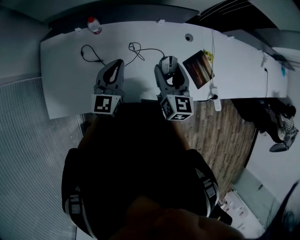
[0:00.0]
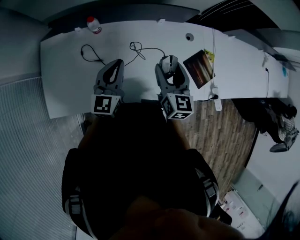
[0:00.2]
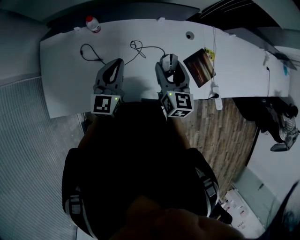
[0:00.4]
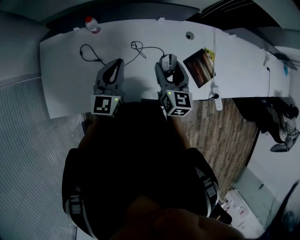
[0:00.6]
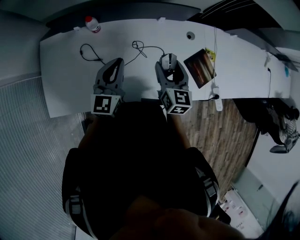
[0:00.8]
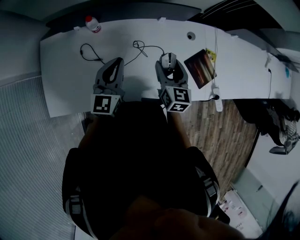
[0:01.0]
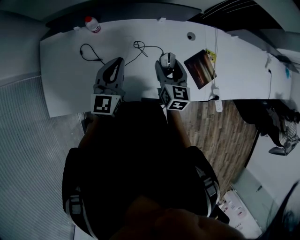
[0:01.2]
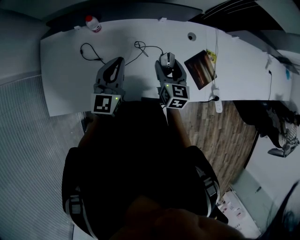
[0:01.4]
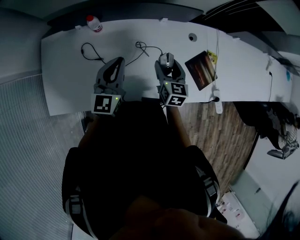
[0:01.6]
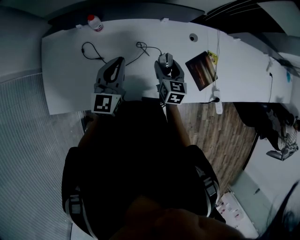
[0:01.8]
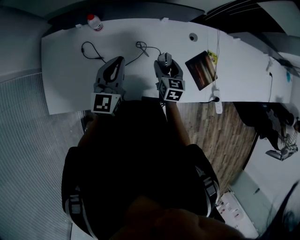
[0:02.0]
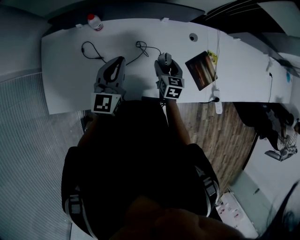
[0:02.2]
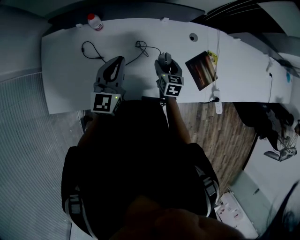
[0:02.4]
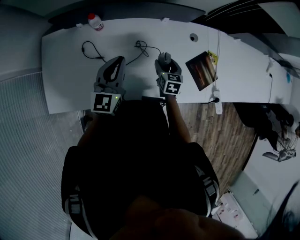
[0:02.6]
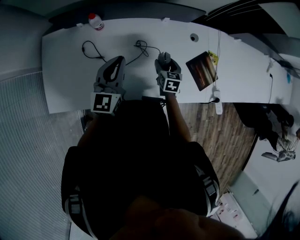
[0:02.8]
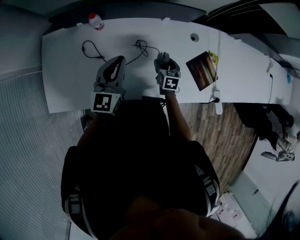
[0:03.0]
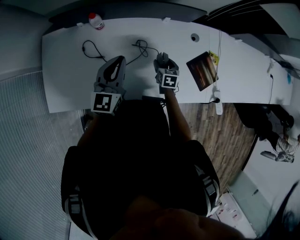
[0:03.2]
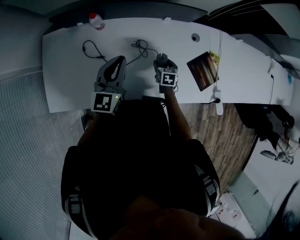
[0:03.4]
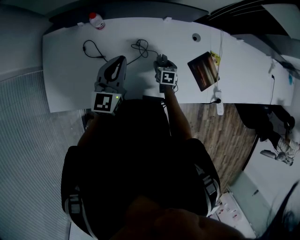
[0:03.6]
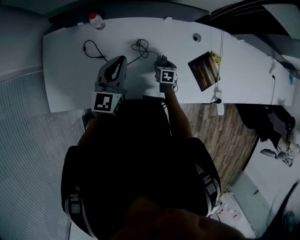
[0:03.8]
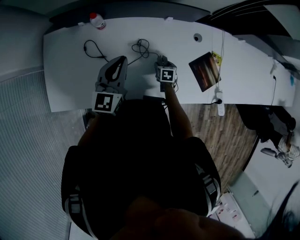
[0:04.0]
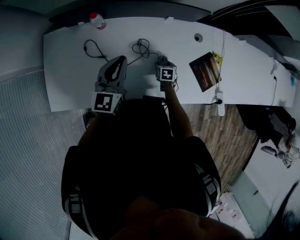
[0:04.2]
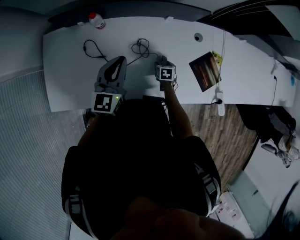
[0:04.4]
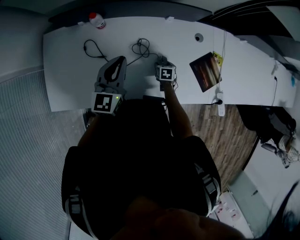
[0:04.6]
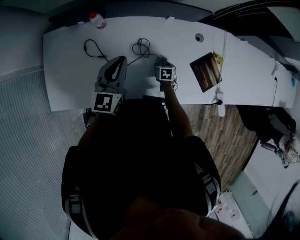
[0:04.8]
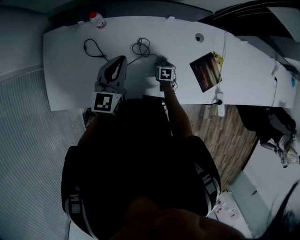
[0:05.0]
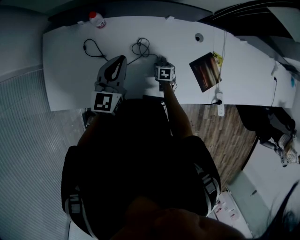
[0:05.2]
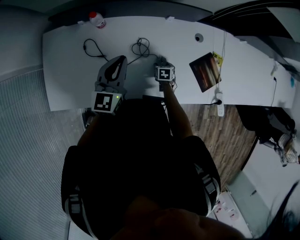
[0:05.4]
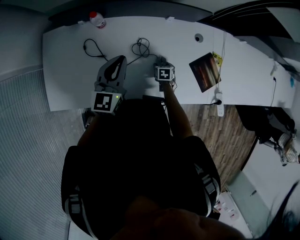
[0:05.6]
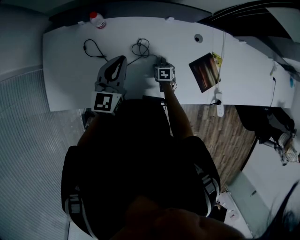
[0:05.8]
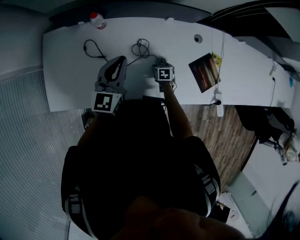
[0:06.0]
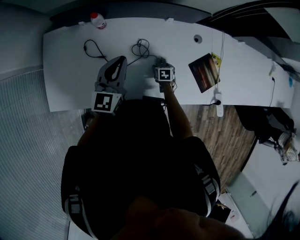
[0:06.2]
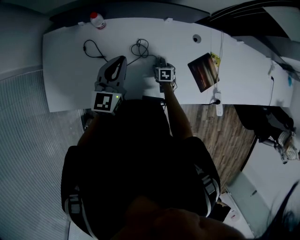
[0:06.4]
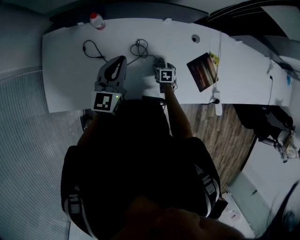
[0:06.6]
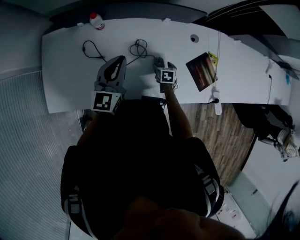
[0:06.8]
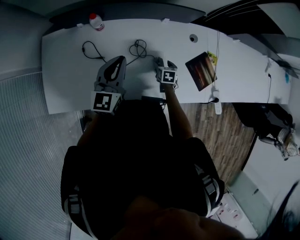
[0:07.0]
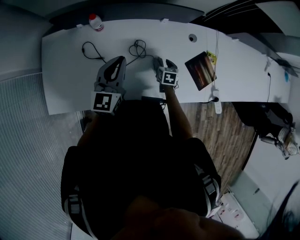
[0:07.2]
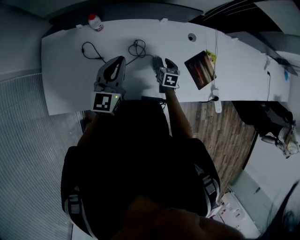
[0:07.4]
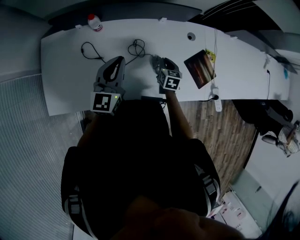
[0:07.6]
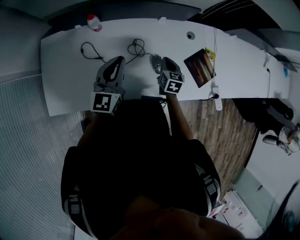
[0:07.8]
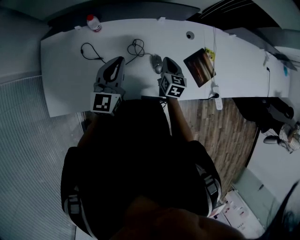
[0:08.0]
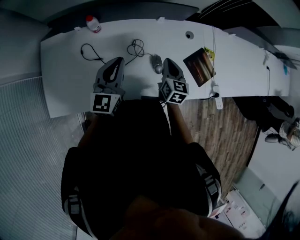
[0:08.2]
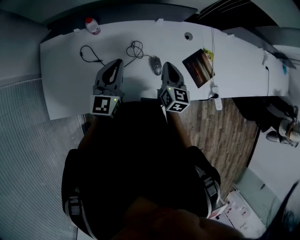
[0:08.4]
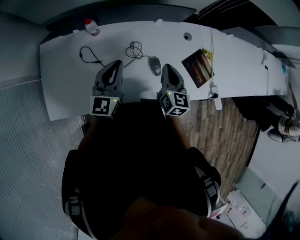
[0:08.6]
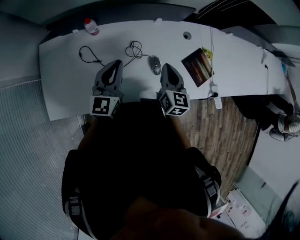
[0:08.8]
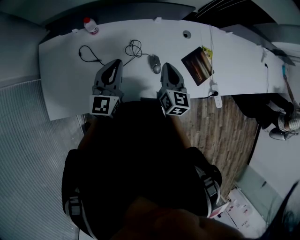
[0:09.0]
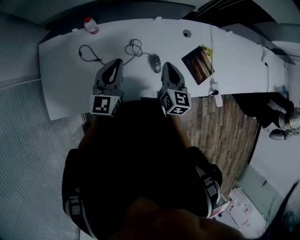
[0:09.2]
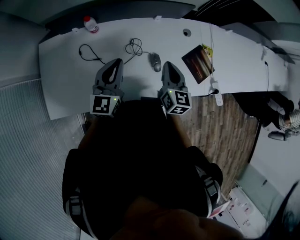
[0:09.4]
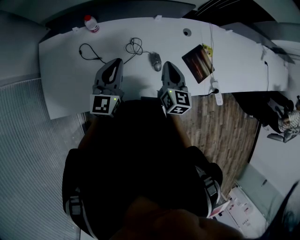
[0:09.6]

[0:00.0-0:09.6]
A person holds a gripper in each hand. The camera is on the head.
0:00.0 to 0:01.6: The right gripper heads downward, covering some 10 cm.
0:01.6 to 0:03.2: The right gripper travels downward by about 15 cm.
0:03.2 to 0:04.8: The right gripper goes roughly 15 cm downward.
0:04.8 to 0:06.4: The grippers stay close to where they were, moving slightly.
0:06.4 to 0:08.0: The right gripper travels upward by roughly 25 cm, angles its fingers upward, by roughly 30 degrees, and closes its fingers.
0:08.0 to 0:09.6: The right gripper shifts about 10 cm upward and backward.

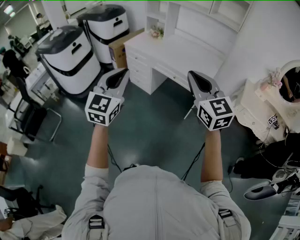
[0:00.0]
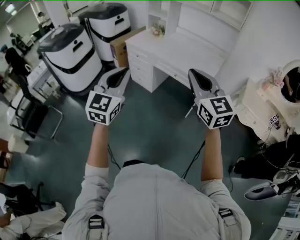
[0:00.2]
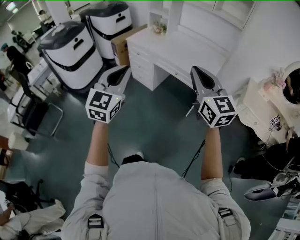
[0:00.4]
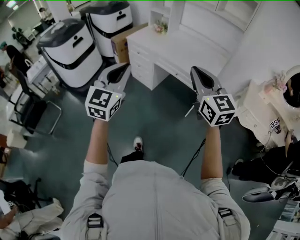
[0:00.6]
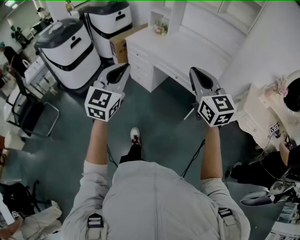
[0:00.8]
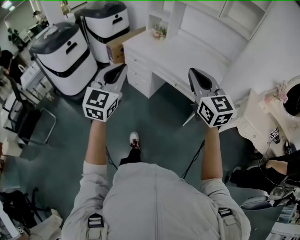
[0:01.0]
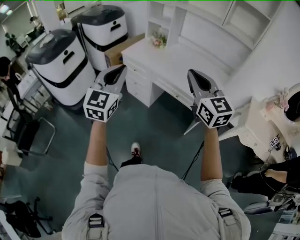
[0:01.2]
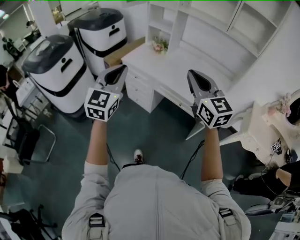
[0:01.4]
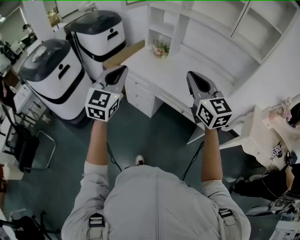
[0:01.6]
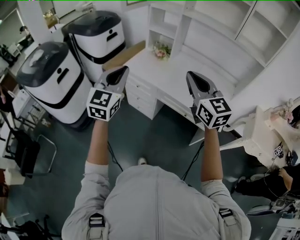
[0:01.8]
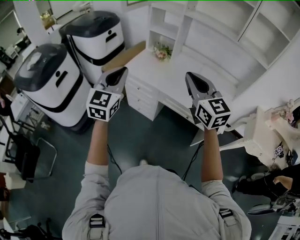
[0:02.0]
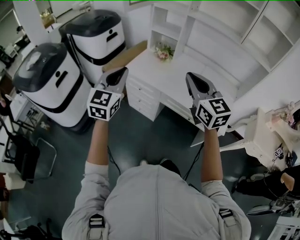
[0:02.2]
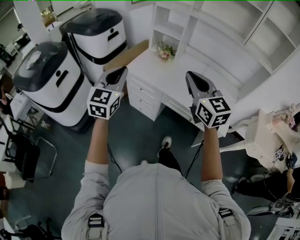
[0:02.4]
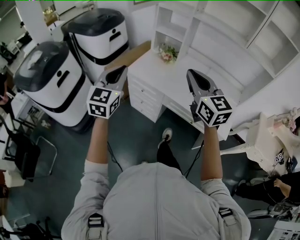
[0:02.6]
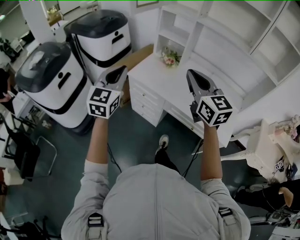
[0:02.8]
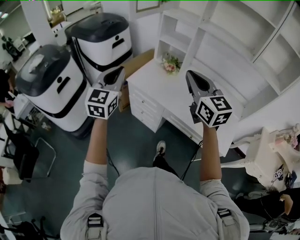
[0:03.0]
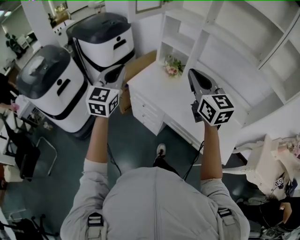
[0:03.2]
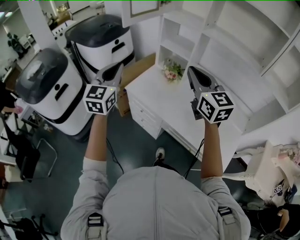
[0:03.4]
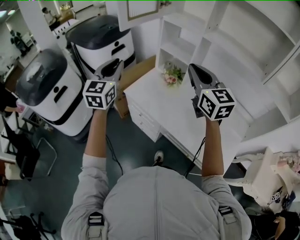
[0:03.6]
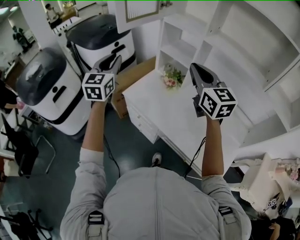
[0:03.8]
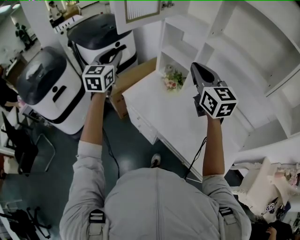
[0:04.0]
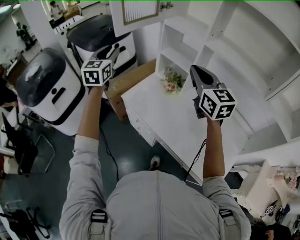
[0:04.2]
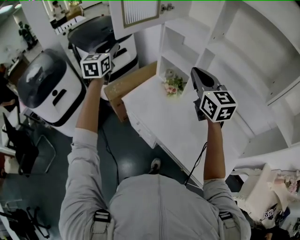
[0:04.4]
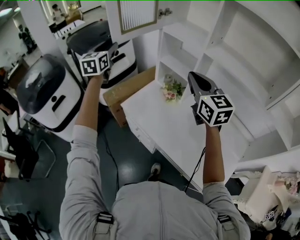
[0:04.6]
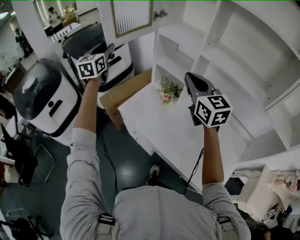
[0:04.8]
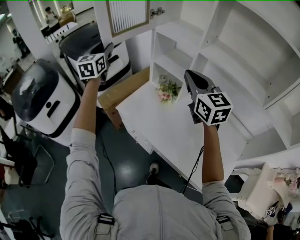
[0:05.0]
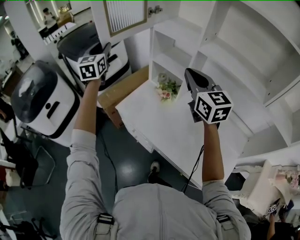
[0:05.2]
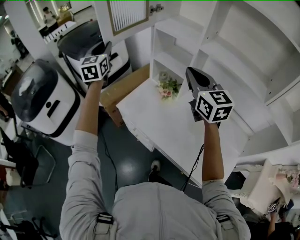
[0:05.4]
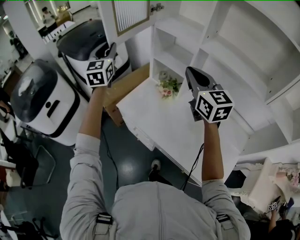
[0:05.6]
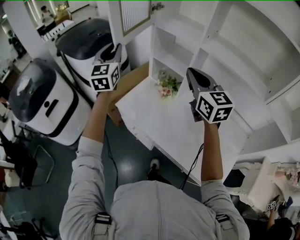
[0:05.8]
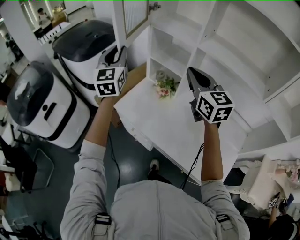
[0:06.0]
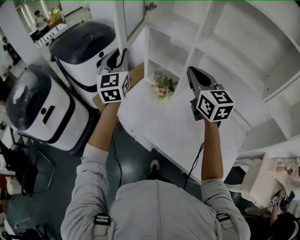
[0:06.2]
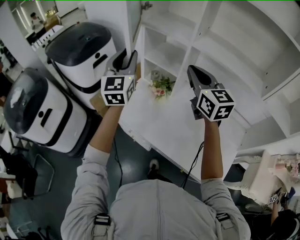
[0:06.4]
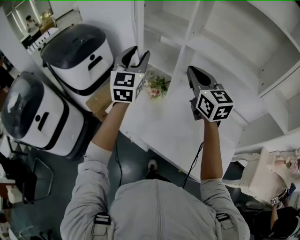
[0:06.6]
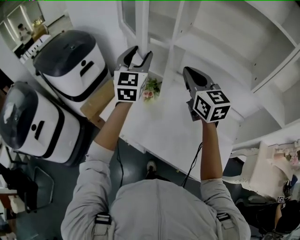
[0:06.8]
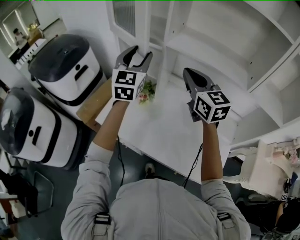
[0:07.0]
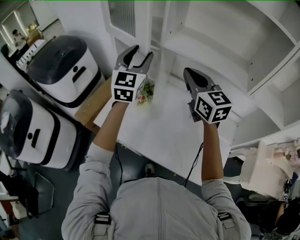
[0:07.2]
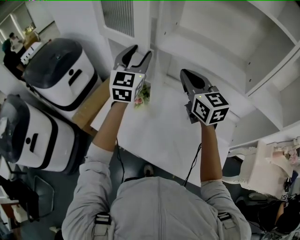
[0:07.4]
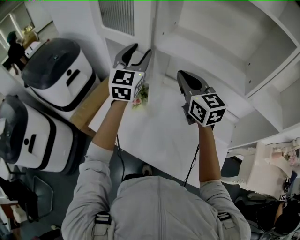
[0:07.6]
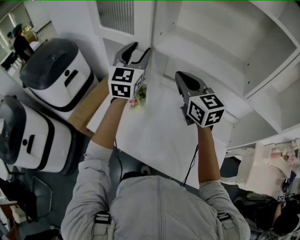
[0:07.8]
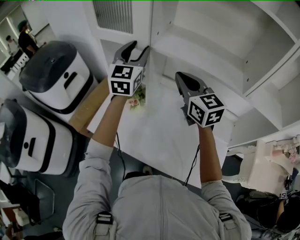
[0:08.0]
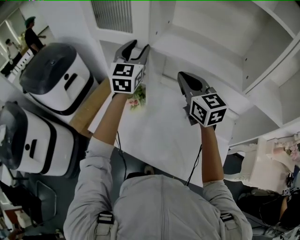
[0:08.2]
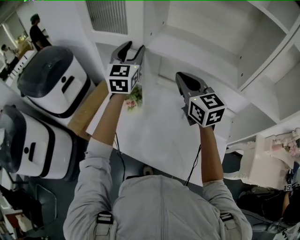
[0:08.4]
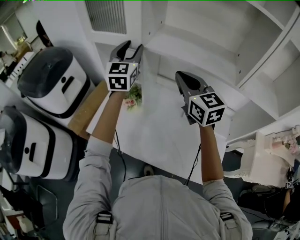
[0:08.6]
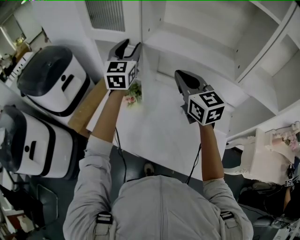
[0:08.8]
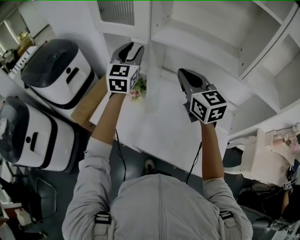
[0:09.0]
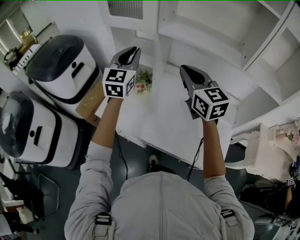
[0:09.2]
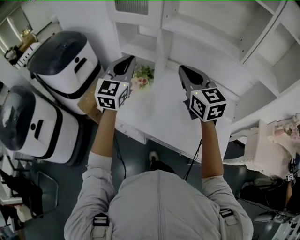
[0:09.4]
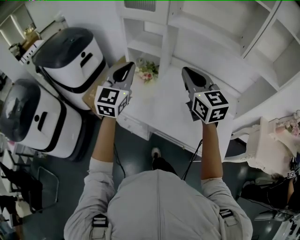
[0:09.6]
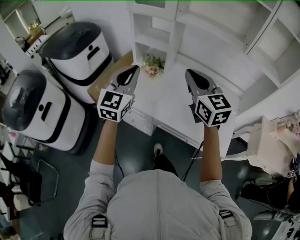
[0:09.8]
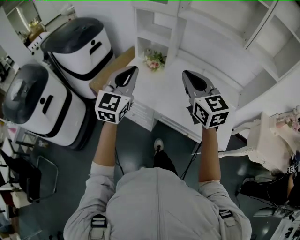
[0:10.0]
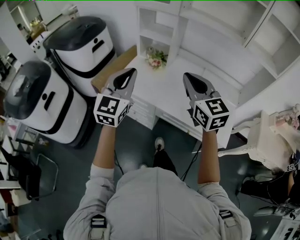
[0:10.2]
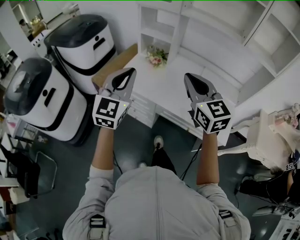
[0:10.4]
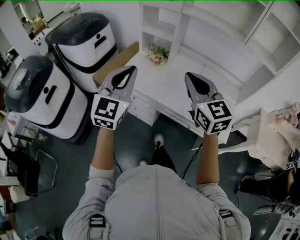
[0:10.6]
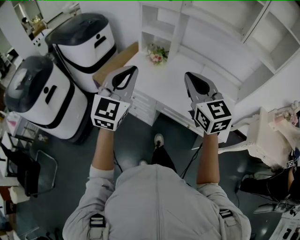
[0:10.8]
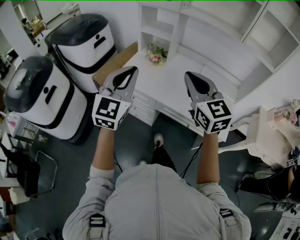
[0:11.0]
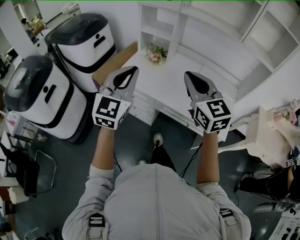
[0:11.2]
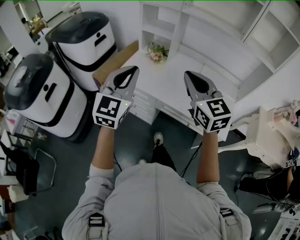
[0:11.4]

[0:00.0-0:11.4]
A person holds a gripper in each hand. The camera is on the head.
0:00.0 to 0:01.4: The two grippers go some 30 cm forward.
0:01.4 to 0:02.8: Both grippers travel together forward and to the left, some 25 cm.
0:02.8 to 0:04.2: The two grippers go about 30 cm forward. The left gripper opens up.
0:04.2 to 0:05.6: The left gripper shifts roughly 5 cm forward.
0:05.6 to 0:07.2: The right gripper heads to the right, covering about 15 cm. The left gripper shifts some 30 cm to the right, swivels roughly 30 degrees, and opens up.
0:07.2 to 0:08.6: The left gripper goes about 5 cm forward.
0:08.6 to 0:10.0: The right gripper heads backward and to the left, covering approximately 30 cm, while the left gripper travels backward by some 40 cm, and closes.
0:10.0 to 0:11.4: The two grippers go some 10 cm backward.

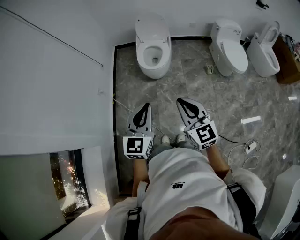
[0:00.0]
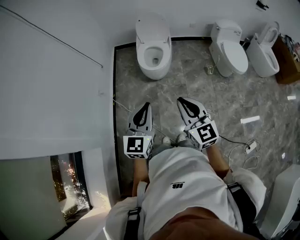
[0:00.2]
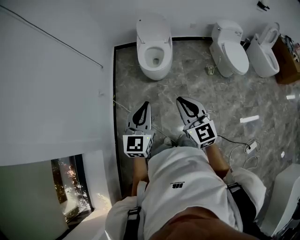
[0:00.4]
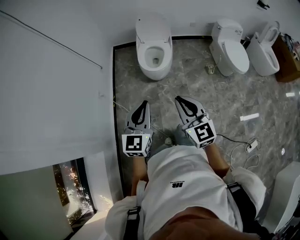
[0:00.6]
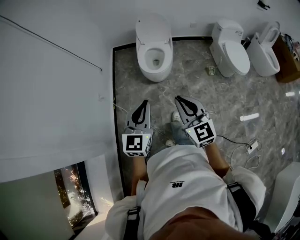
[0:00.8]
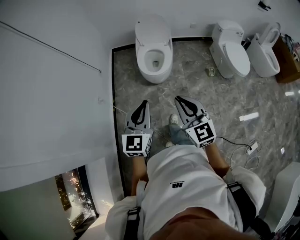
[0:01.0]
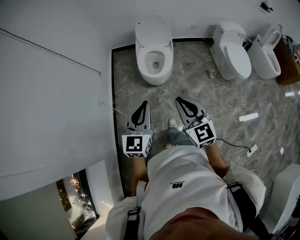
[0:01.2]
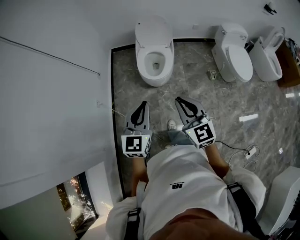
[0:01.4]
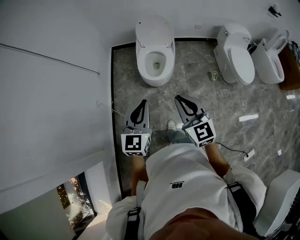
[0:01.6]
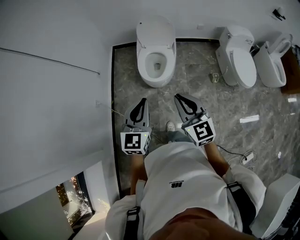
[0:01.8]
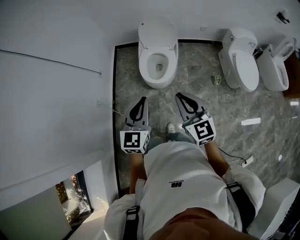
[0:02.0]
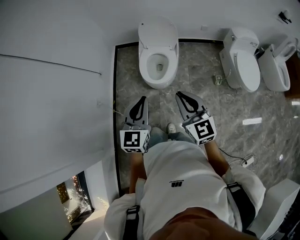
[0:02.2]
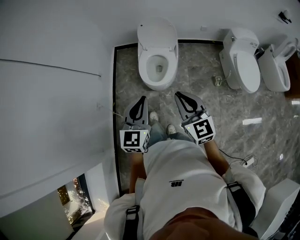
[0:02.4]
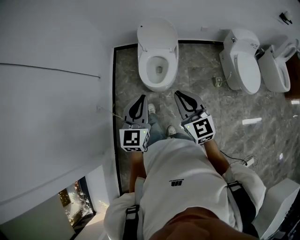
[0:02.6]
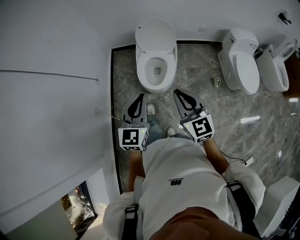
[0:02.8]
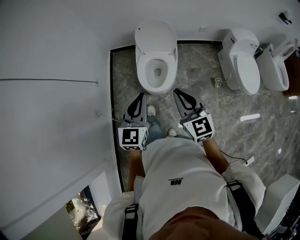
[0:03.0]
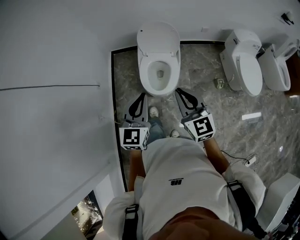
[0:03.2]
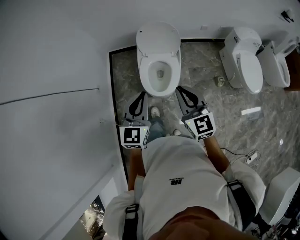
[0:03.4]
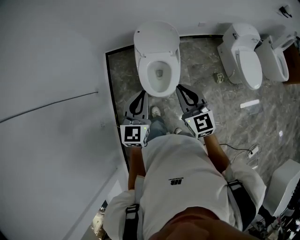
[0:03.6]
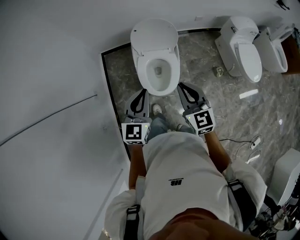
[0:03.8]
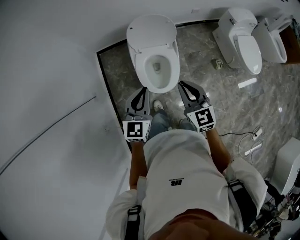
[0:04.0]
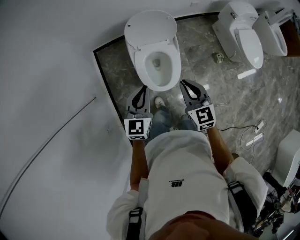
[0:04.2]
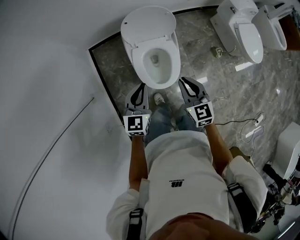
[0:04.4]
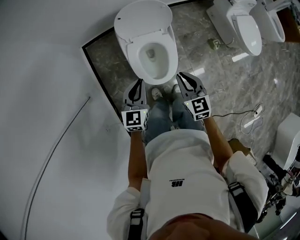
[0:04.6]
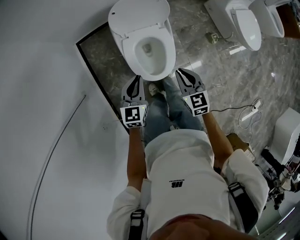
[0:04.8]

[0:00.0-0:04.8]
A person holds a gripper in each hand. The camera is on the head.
0:00.0 to 0:01.6: The grippers both shift forward by some 25 cm.
0:01.6 to 0:03.2: The grippers both shift forward by some 25 cm.
0:03.2 to 0:04.8: Both grippers travel together downward and forward, roughly 30 cm. The left gripper changes its angle by some 20 degrees; the right gripper turns by some 30 degrees.
